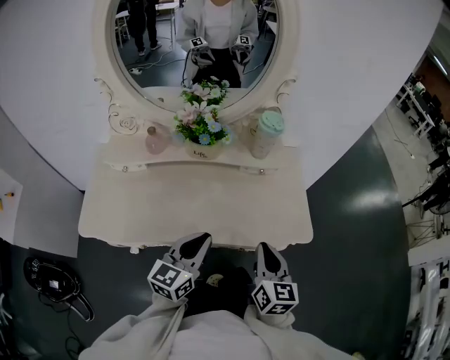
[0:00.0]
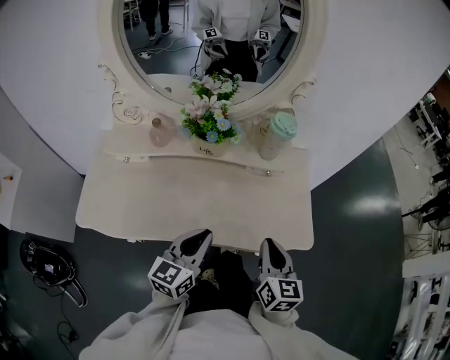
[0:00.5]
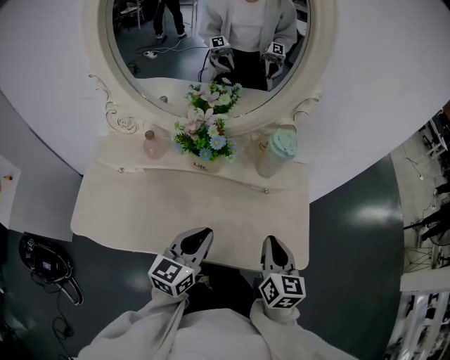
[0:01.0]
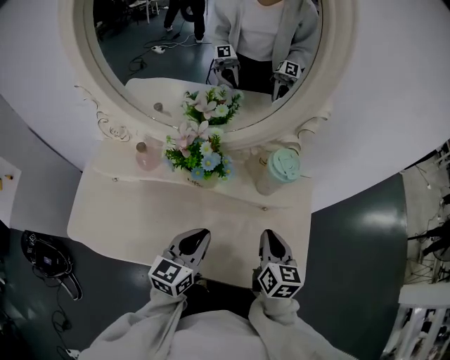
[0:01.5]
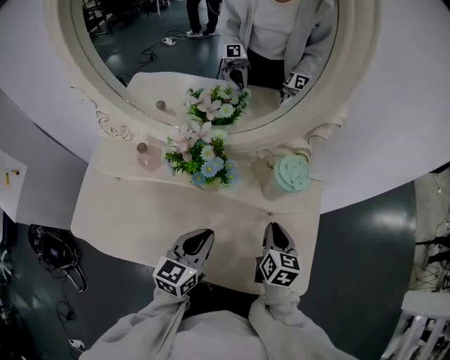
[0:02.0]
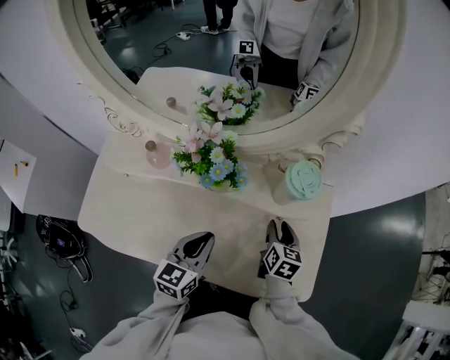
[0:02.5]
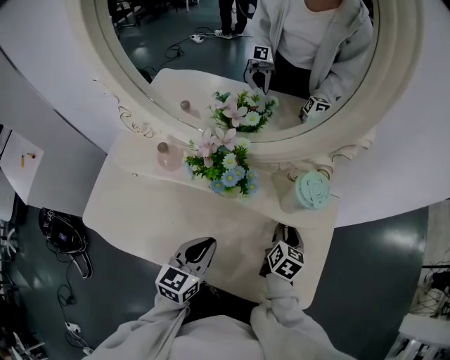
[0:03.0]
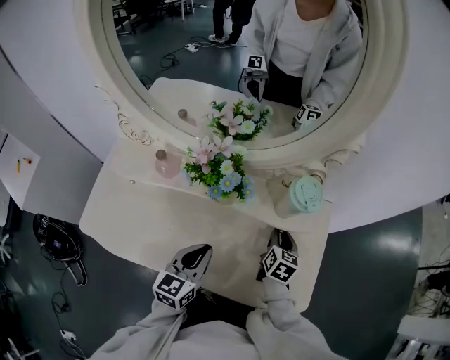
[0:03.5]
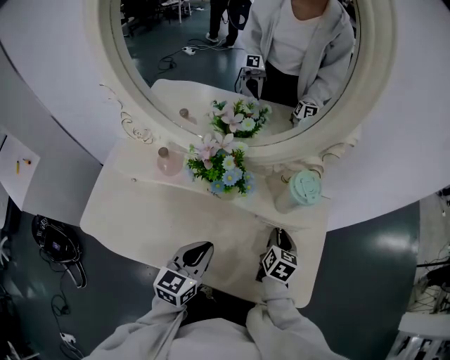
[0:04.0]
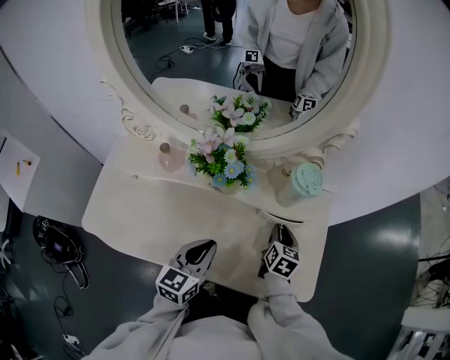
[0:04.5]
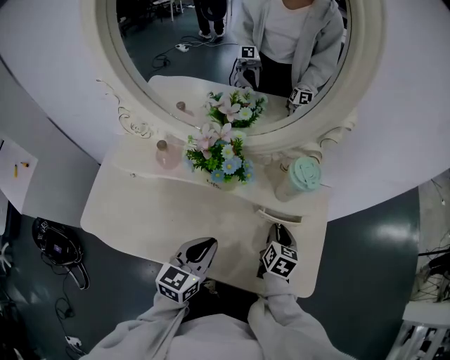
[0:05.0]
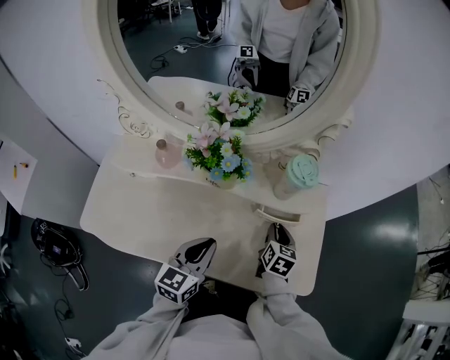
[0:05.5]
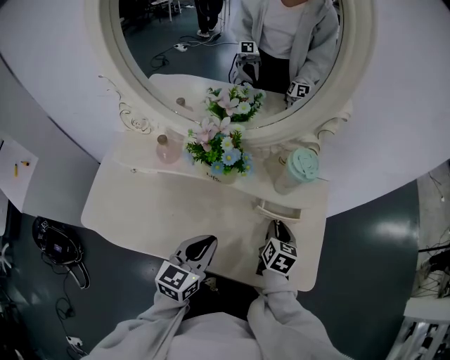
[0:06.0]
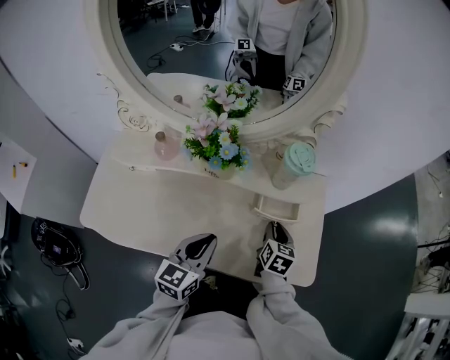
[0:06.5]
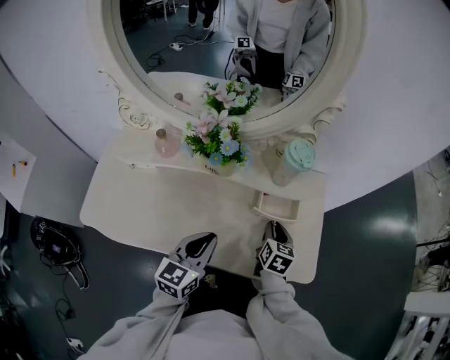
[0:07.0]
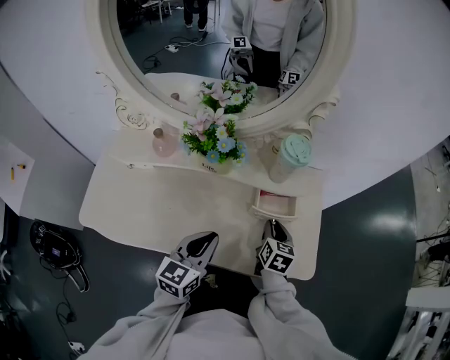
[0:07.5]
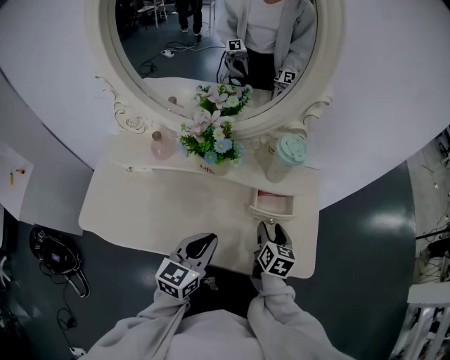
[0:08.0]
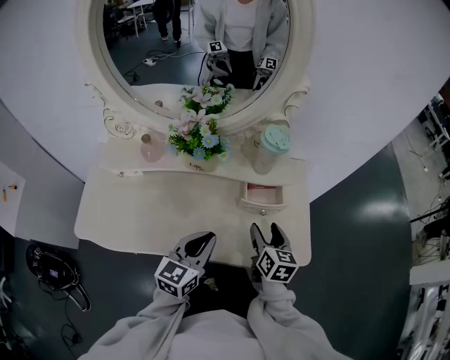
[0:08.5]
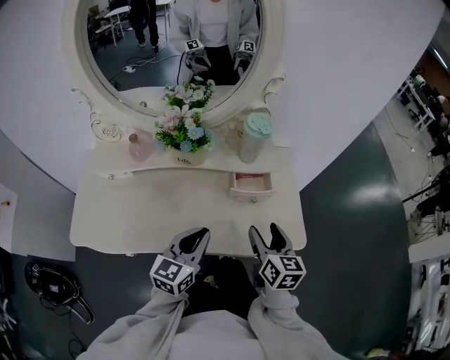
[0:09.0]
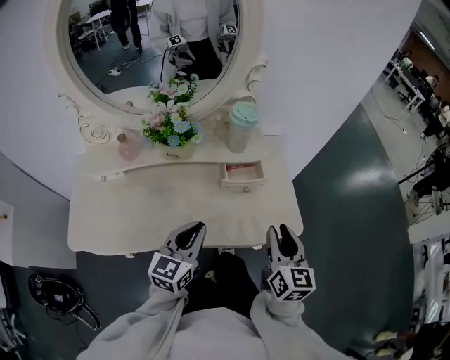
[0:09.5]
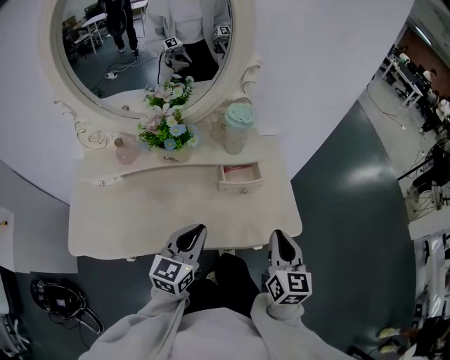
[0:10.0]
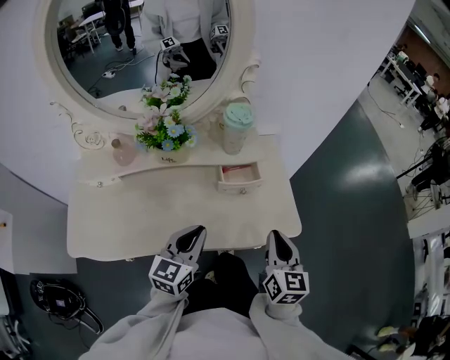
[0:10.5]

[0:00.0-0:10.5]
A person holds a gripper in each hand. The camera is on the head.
0:00.0 to 0:02.0: The left gripper moves forward, roughly 15 cm. The right gripper goes some 25 cm forward.
0:02.0 to 0:04.0: The right gripper changes place by approximately 5 cm.
0:04.0 to 0:06.5: The right gripper shifts about 5 cm backward.
0:06.5 to 0:08.5: The right gripper moves backward and upward, roughly 10 cm, and opens its fingers.
0:08.5 to 0:10.5: The right gripper shifts approximately 15 cm backward, upward and to the right, and closes its fingers.

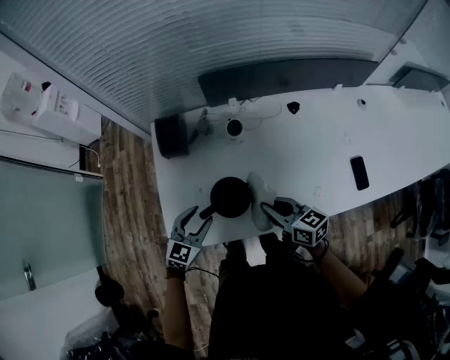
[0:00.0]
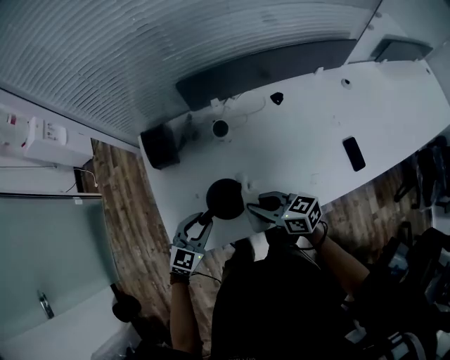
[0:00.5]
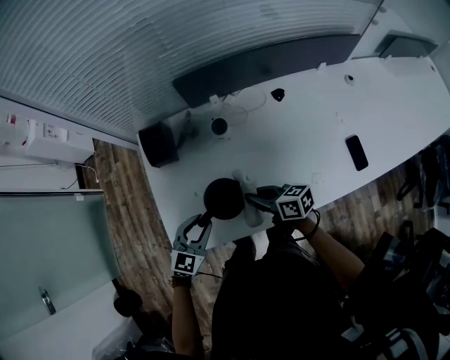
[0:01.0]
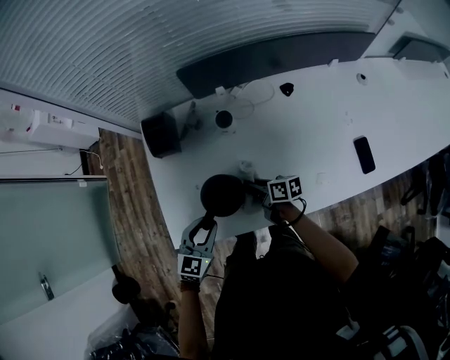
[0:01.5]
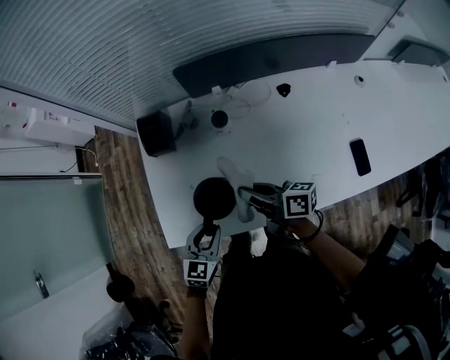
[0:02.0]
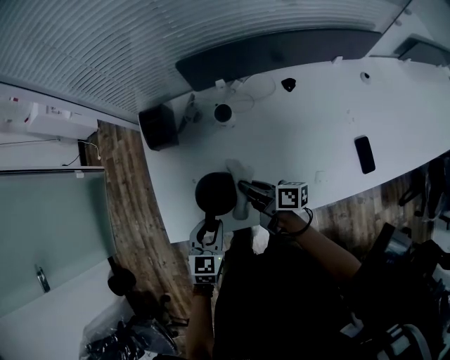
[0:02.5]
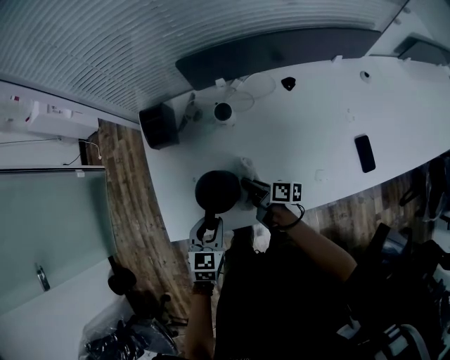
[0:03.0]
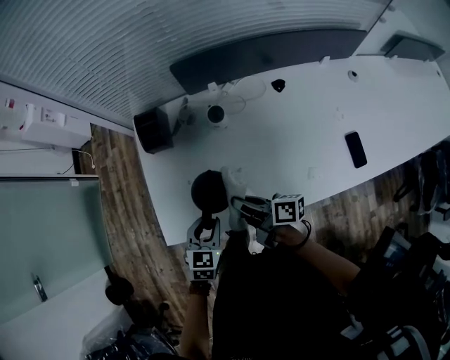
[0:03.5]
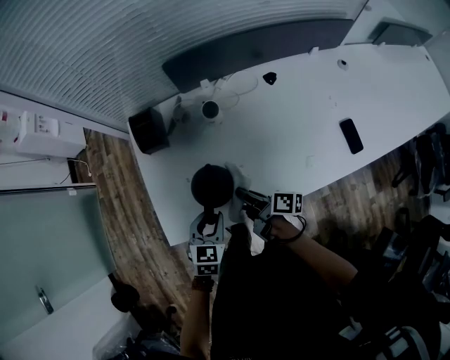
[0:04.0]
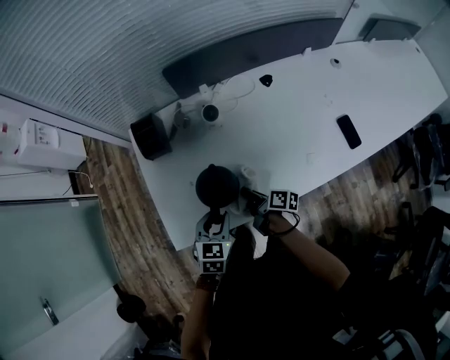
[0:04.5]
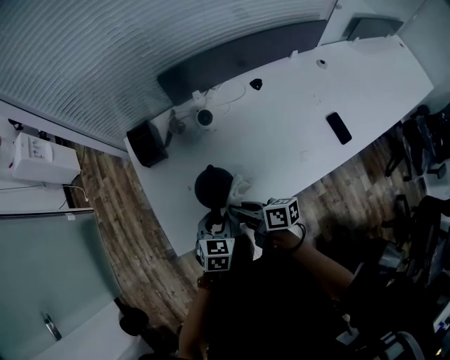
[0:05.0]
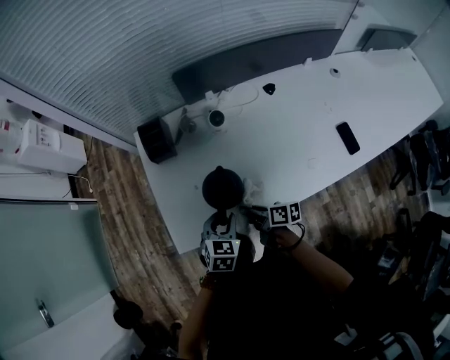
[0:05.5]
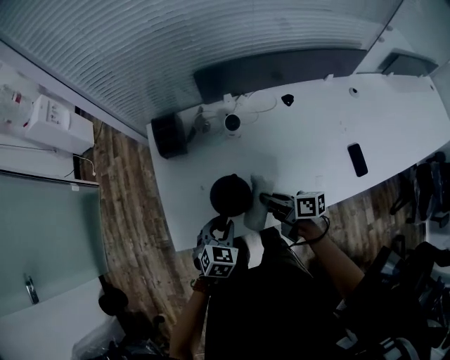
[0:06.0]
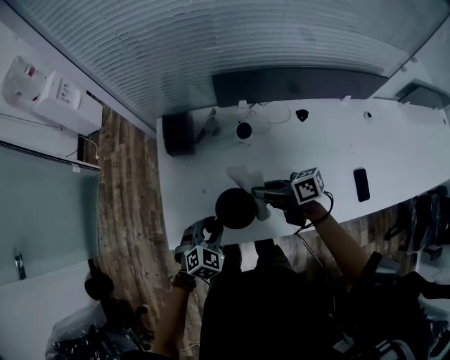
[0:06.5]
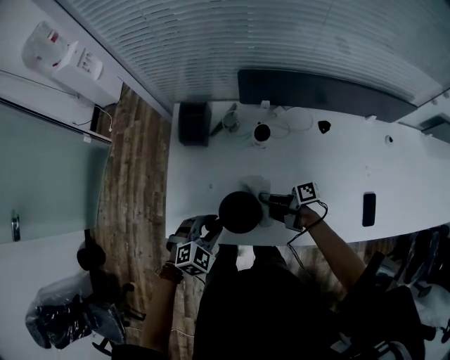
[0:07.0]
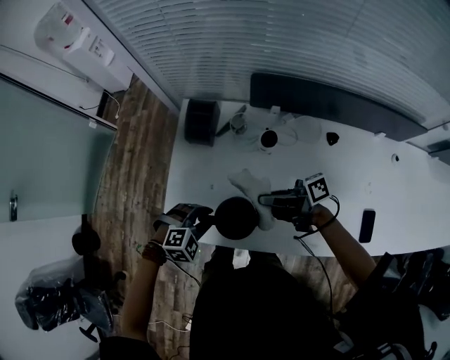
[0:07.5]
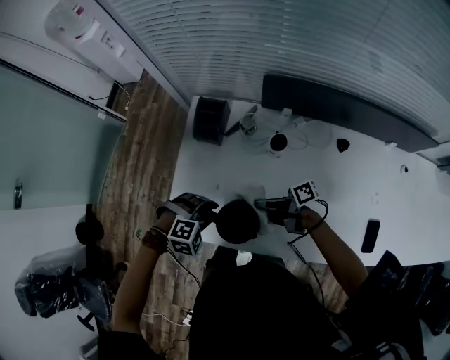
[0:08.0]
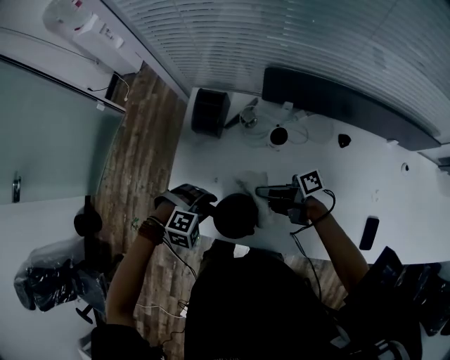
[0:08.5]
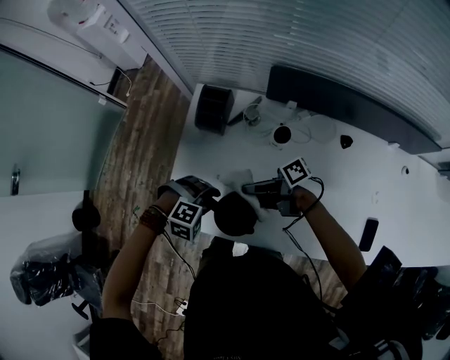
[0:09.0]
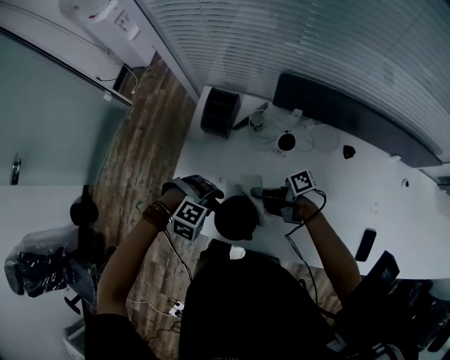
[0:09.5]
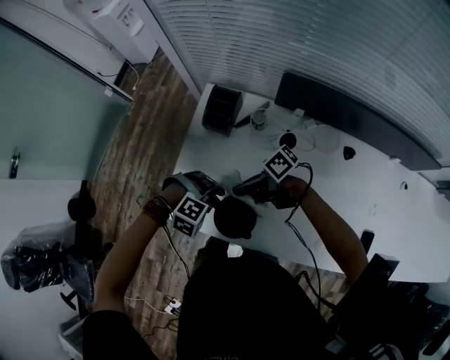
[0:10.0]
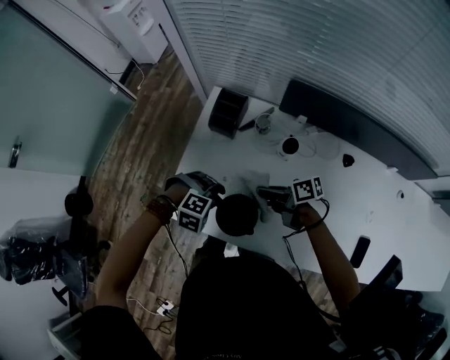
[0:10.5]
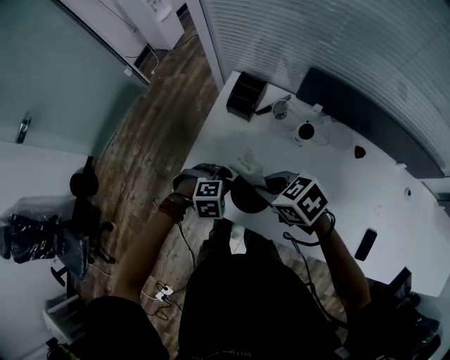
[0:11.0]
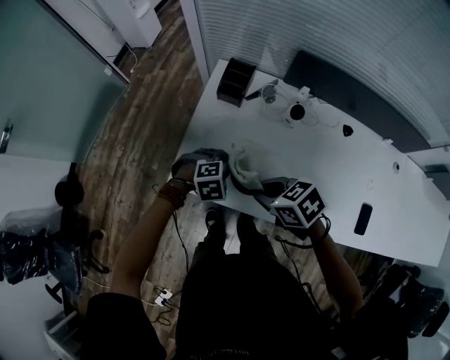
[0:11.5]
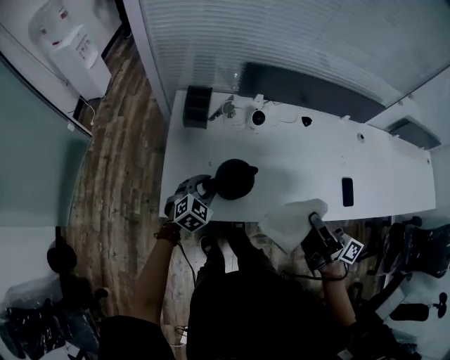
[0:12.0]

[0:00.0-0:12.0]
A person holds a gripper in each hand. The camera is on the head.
0:00.0 to 0:02.0: The left gripper is displaced backward by approximately 5 cm, while the right gripper moves forward, some 5 cm, travels downward and back again, about 15 cm each way, and turns by approximately 30 degrees.
0:02.0 to 0:04.0: The right gripper goes up and down, approximately 15 cm each way, reversing 2 times, and swivels about 30 degrees.
0:04.0 to 0:06.0: The right gripper swings up and down, some 10 cm each way, with 3 reversals, and turns by roughly 20 degrees.
0:06.0 to 0:08.0: The right gripper swings up and down, about 15 cm each way, with 3 reversals, and turns by approximately 50 degrees, while the left gripper moves about 5 cm, and rotates around the line of its fingers by some 40 degrees, clockwise from behind.
0:08.0 to 0:10.0: The right gripper moves up and down over about 5 cm, changing direction 2 times, and changes its angle by some 30 degrees.
0:10.0 to 0:12.0: The right gripper changes place by about 30 cm, and swivels some 90 degrees; the left gripper changes place by roughly 5 cm, and changes its angle by roughly 50 degrees.

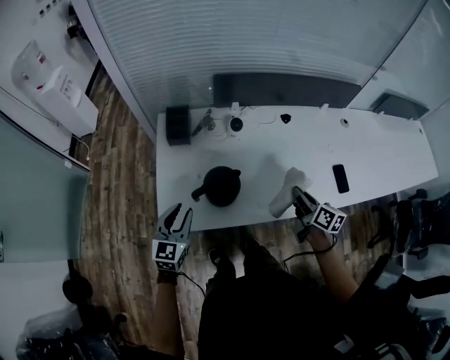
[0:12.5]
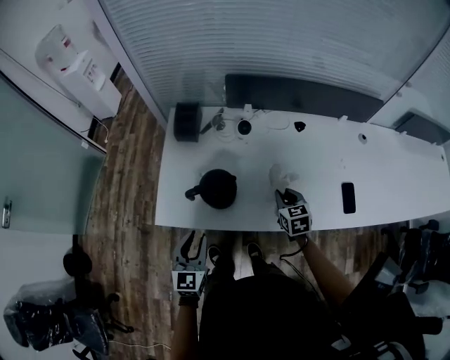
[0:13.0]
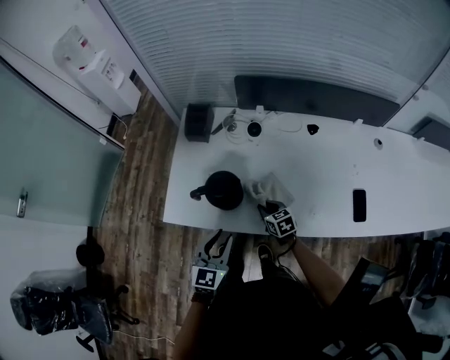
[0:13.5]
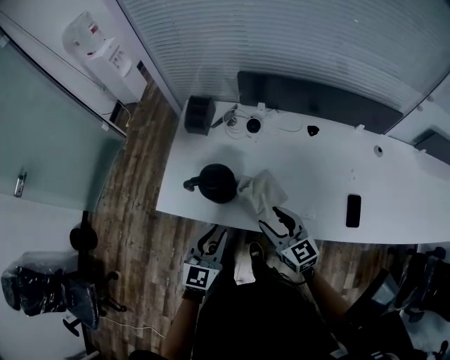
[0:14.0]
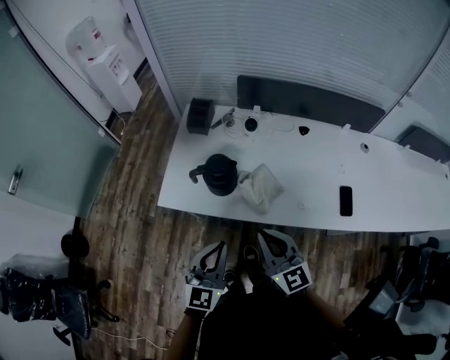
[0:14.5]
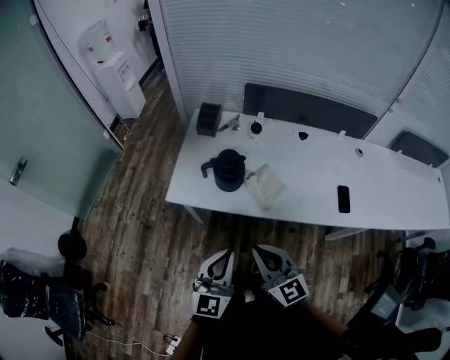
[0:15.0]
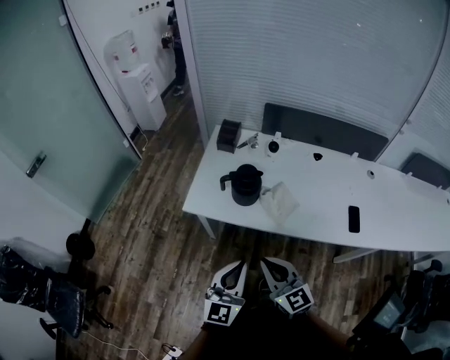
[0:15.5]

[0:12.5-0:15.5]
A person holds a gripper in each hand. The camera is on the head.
0:12.5 to 0:14.0: The left gripper is displaced to the right and backward by about 20 cm. Meanwhile the right gripper heads to the left, covering approximately 5 cm, travels downward and back again, roughly 20 cm each way, twists some 40 degrees counterclockwise, seen from behind, and opens its fingers.
0:14.0 to 0:15.5: The left gripper heads backward and upward, covering about 25 cm, and closes up. The right gripper is displaced backward and to the left by roughly 25 cm, and closes.

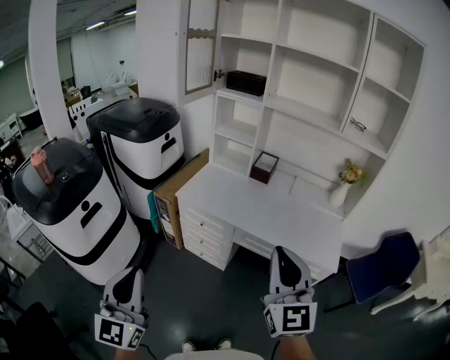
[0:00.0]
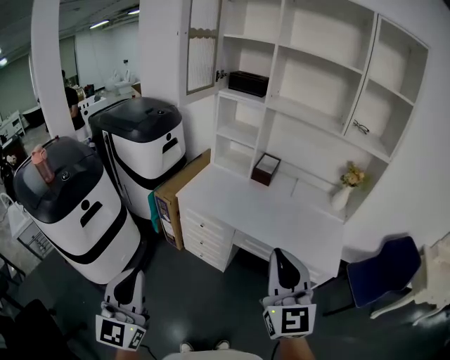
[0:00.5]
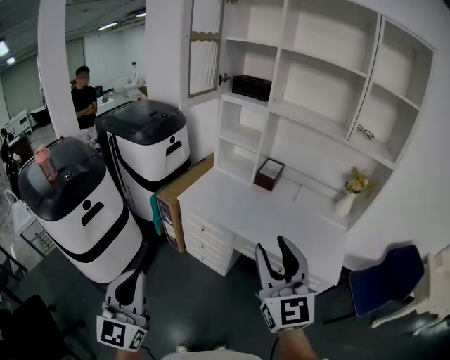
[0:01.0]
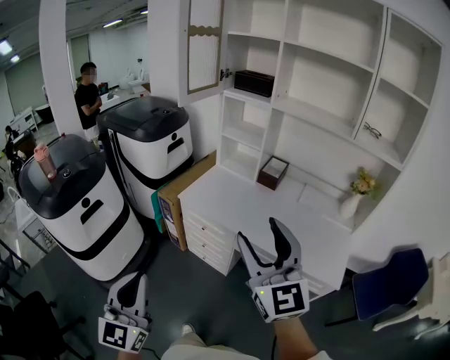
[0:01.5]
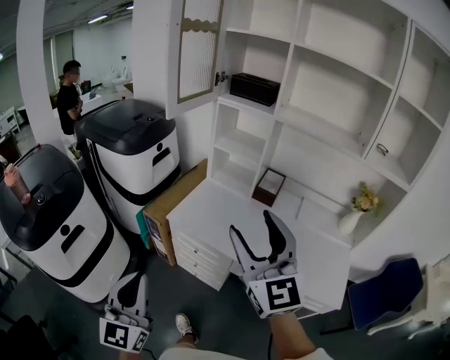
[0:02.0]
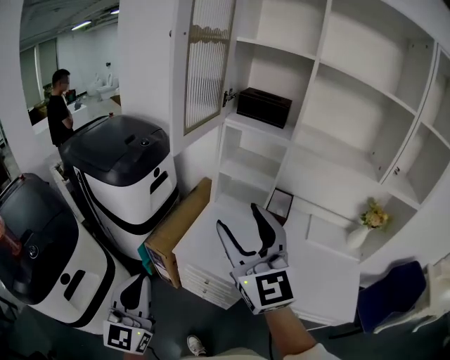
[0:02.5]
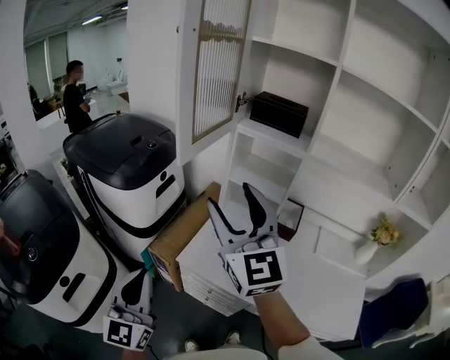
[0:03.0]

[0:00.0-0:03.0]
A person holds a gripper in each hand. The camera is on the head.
0:00.0 to 0:01.5: The left gripper shifts about 5 cm to the right, while the right gripper is displaced forward by roughly 10 cm, and opens up.
0:01.5 to 0:03.0: The two grippers travel together, forward, roughly 40 cm.
